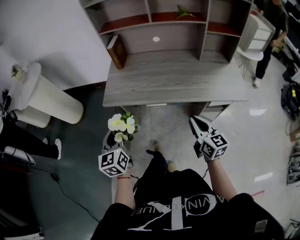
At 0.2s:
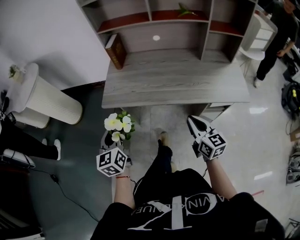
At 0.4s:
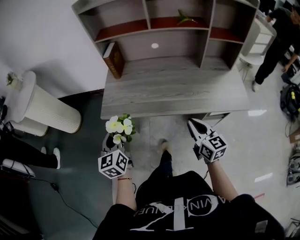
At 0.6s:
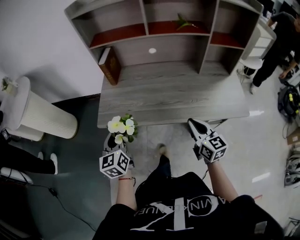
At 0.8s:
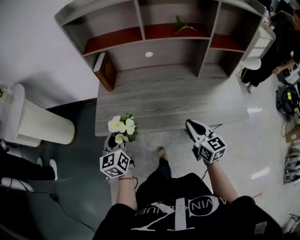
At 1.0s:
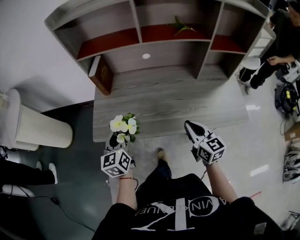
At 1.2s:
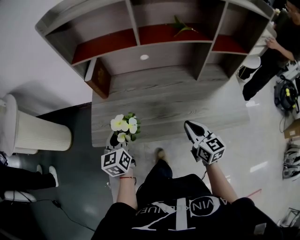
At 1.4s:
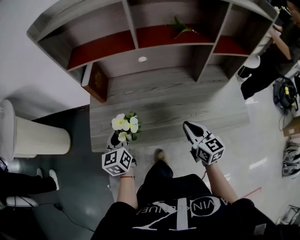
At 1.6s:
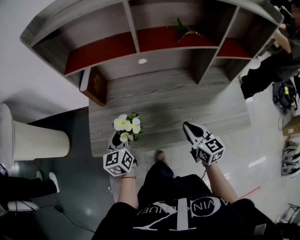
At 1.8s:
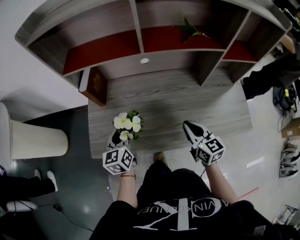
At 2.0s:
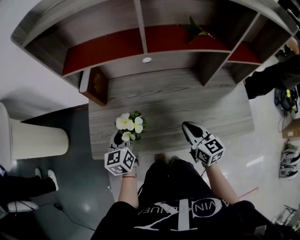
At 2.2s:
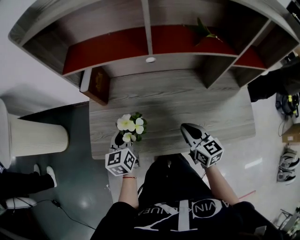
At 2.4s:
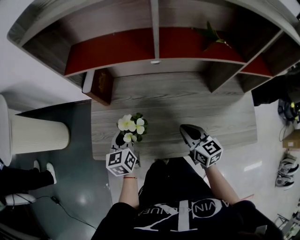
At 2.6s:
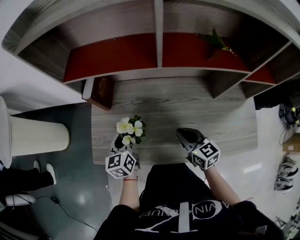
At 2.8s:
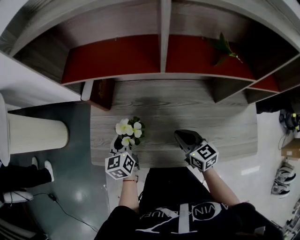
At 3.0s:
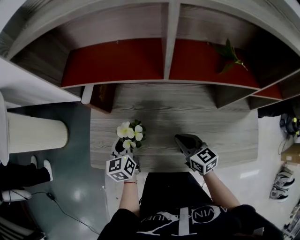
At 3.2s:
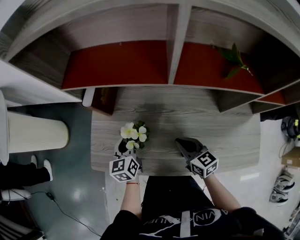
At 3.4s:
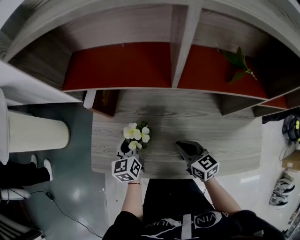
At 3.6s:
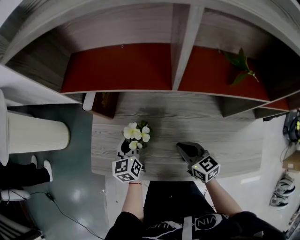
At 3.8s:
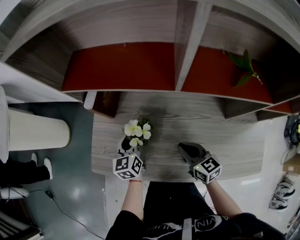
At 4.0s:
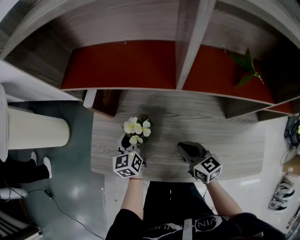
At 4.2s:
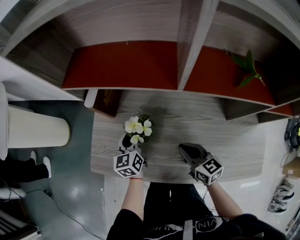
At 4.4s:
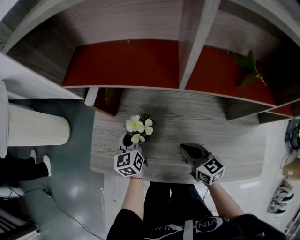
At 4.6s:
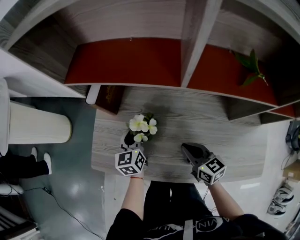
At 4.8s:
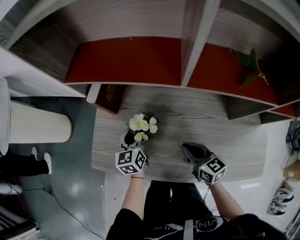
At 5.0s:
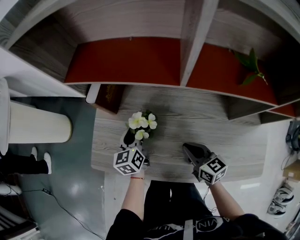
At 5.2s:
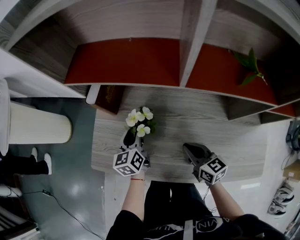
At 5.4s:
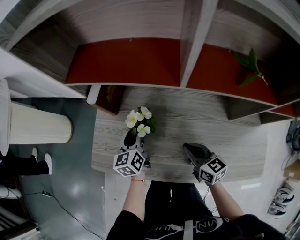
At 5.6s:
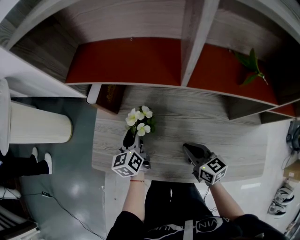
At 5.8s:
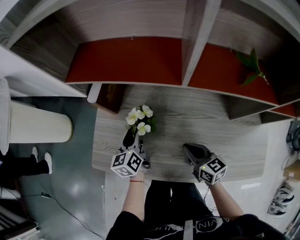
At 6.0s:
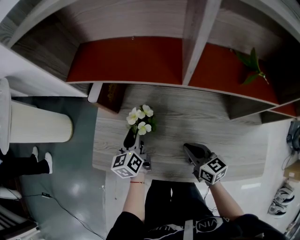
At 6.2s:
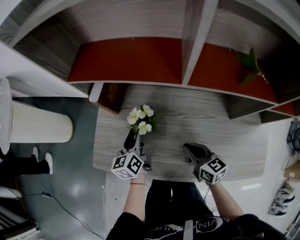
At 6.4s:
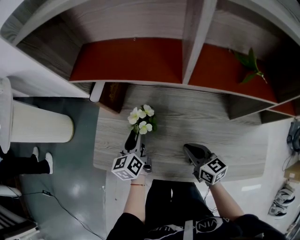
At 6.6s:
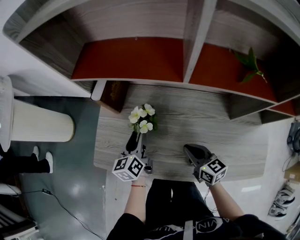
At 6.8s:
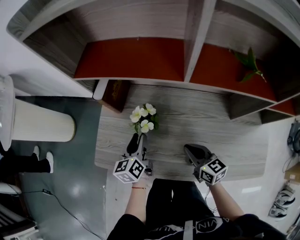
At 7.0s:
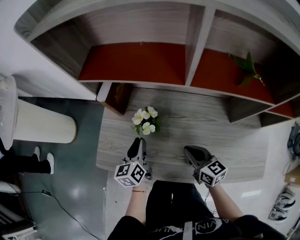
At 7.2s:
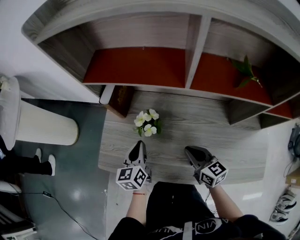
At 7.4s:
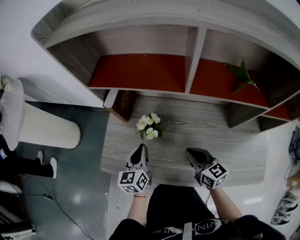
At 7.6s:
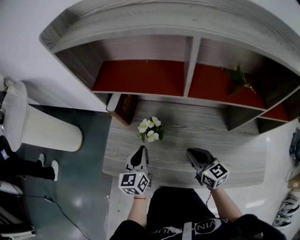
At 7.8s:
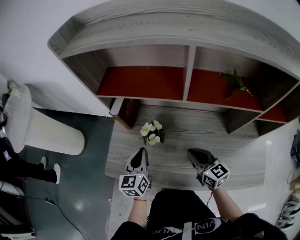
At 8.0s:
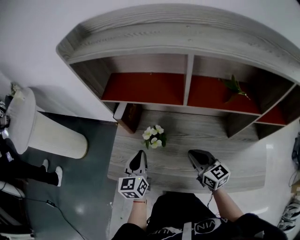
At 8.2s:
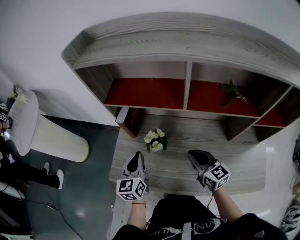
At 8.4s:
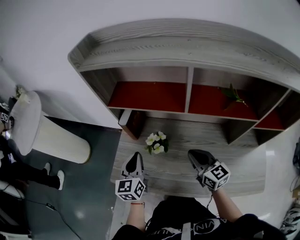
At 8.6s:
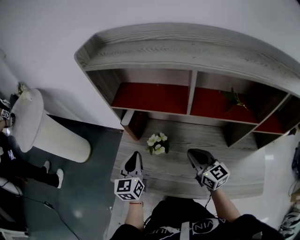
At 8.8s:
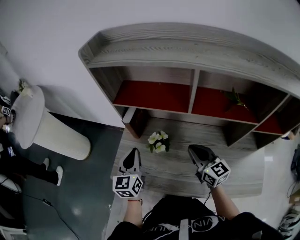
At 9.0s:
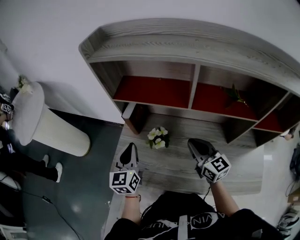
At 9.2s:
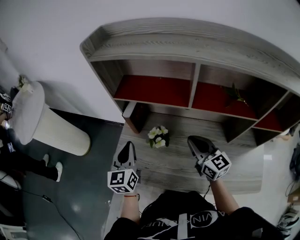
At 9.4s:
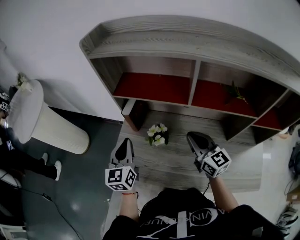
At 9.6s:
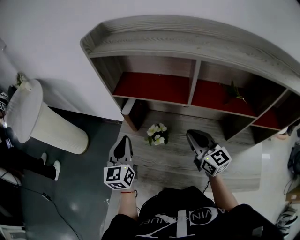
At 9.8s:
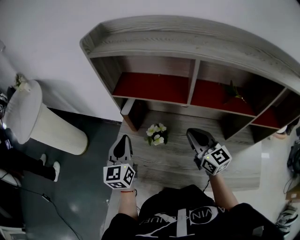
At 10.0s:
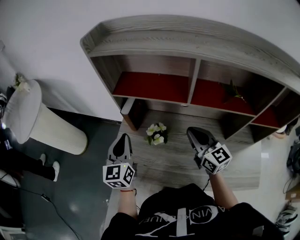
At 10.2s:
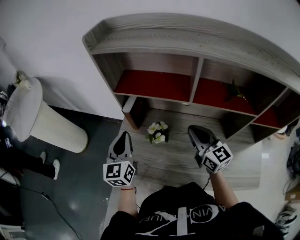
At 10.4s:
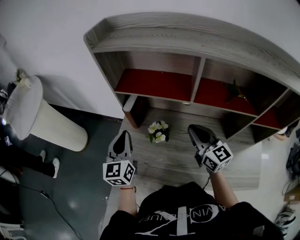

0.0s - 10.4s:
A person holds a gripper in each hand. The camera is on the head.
0.0s - 1.4s: Both grippers travel together forward, approximately 25 cm.
1.4s - 3.0s: Both grippers travel together forward and downward, roughly 15 cm. The right gripper turns by some 20 degrees.
3.0s - 4.4s: The left gripper changes place by roughly 5 cm.
4.4s - 6.0s: The left gripper opens its fingers.
6.0s - 7.4s: The left gripper travels backward by about 5 cm, and closes.
7.4s - 9.0s: The left gripper shifts approximately 15 cm upward and to the left. Meanwhile the right gripper travels upward and forward by roughly 15 cm.
9.0s - 10.4s: The grippers stay close to where they were, moving slightly.

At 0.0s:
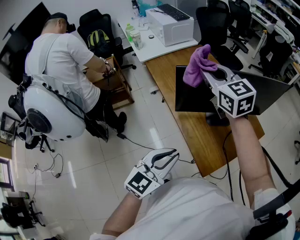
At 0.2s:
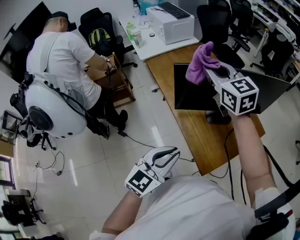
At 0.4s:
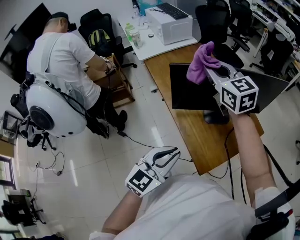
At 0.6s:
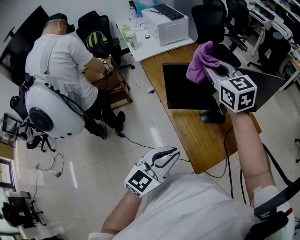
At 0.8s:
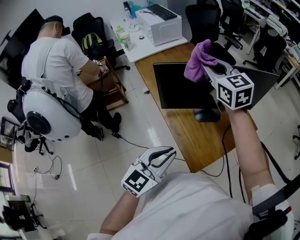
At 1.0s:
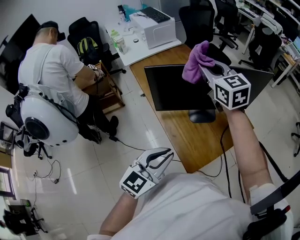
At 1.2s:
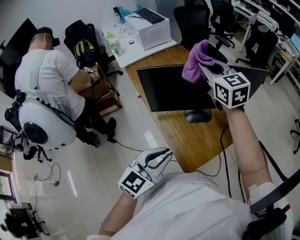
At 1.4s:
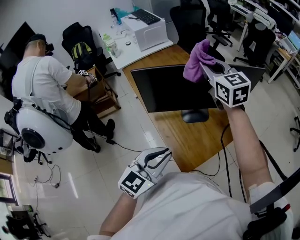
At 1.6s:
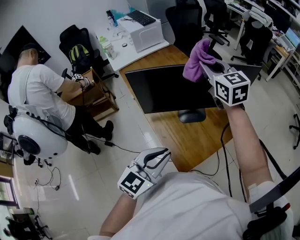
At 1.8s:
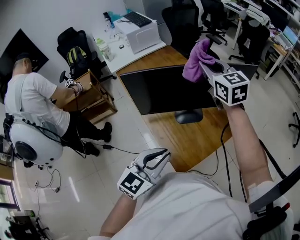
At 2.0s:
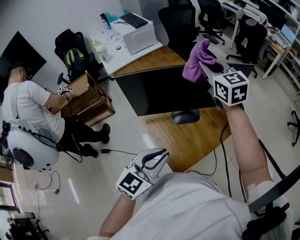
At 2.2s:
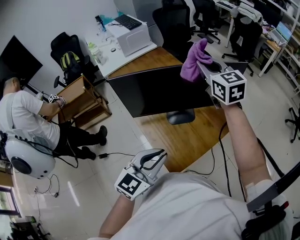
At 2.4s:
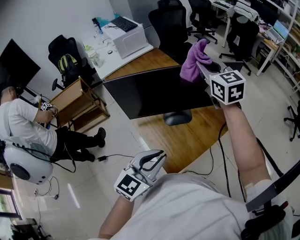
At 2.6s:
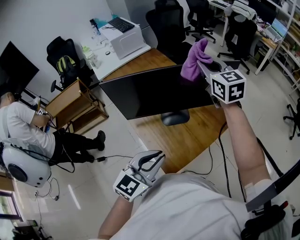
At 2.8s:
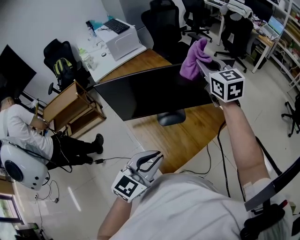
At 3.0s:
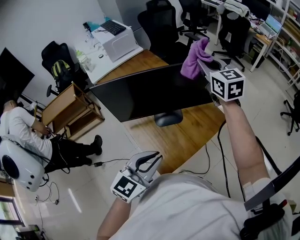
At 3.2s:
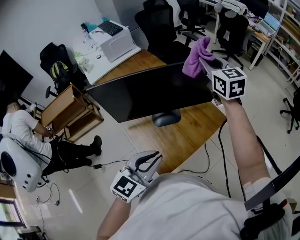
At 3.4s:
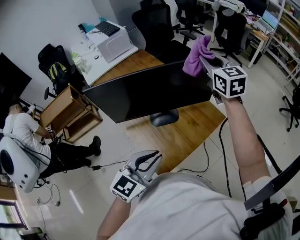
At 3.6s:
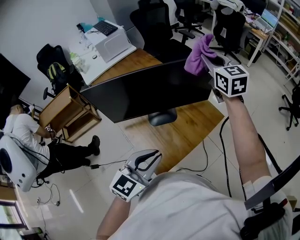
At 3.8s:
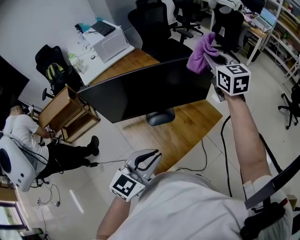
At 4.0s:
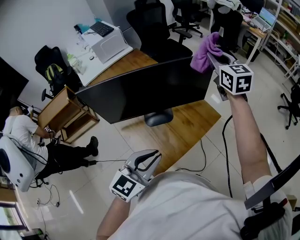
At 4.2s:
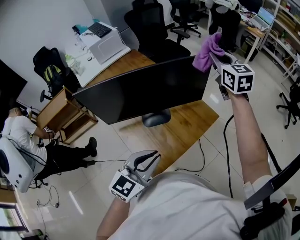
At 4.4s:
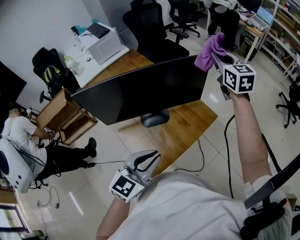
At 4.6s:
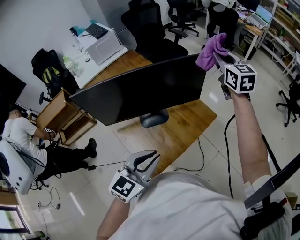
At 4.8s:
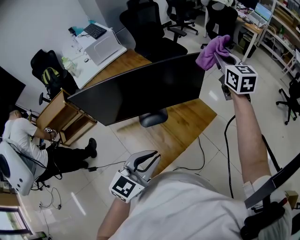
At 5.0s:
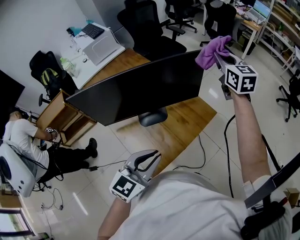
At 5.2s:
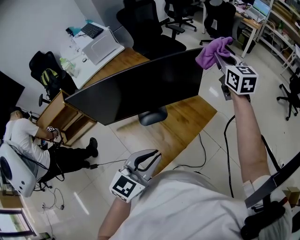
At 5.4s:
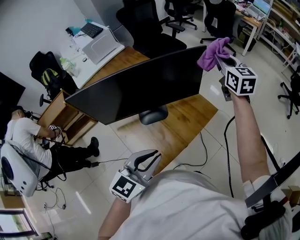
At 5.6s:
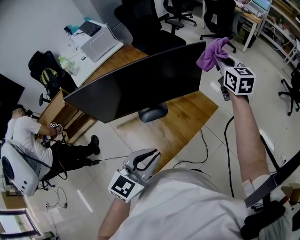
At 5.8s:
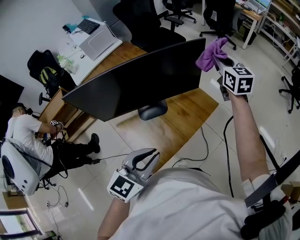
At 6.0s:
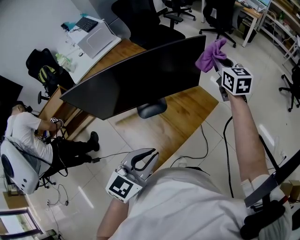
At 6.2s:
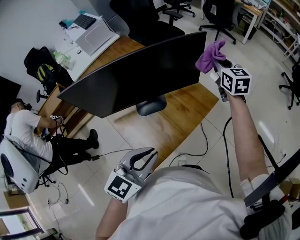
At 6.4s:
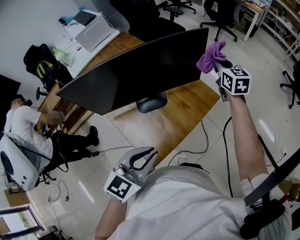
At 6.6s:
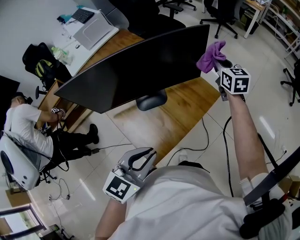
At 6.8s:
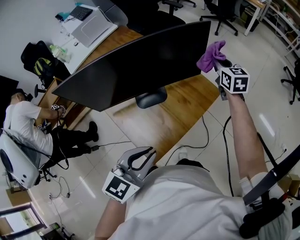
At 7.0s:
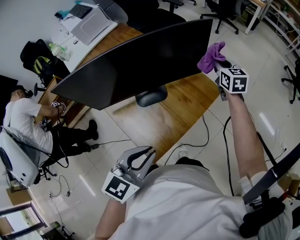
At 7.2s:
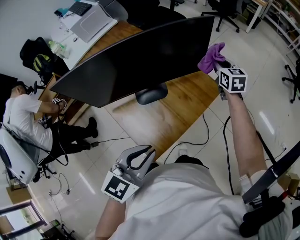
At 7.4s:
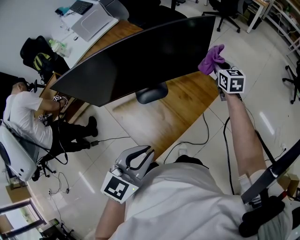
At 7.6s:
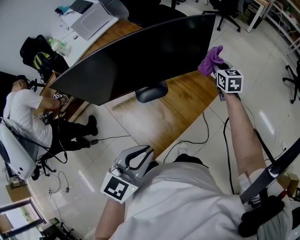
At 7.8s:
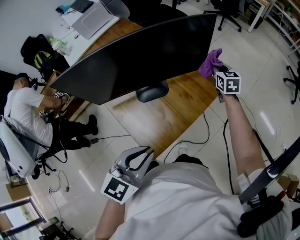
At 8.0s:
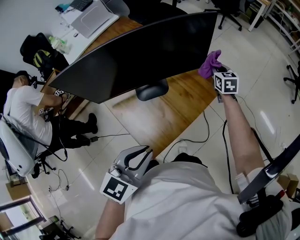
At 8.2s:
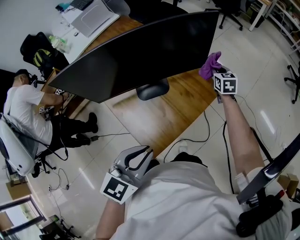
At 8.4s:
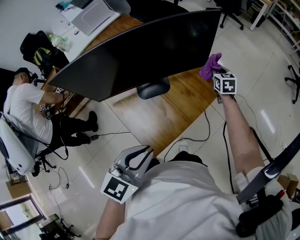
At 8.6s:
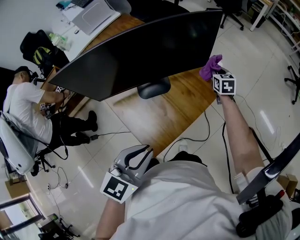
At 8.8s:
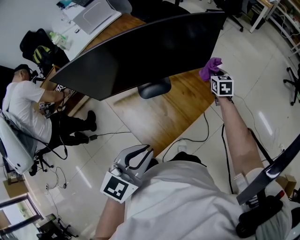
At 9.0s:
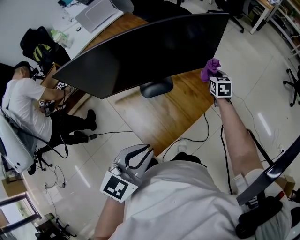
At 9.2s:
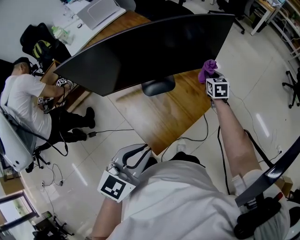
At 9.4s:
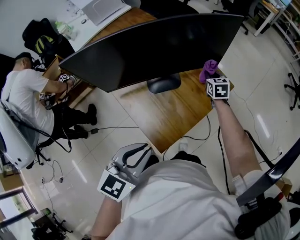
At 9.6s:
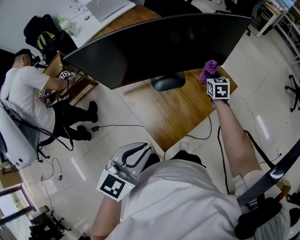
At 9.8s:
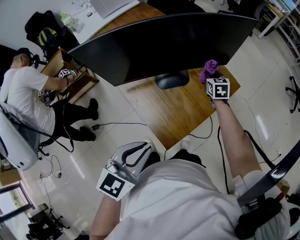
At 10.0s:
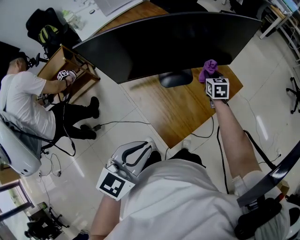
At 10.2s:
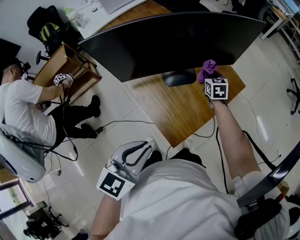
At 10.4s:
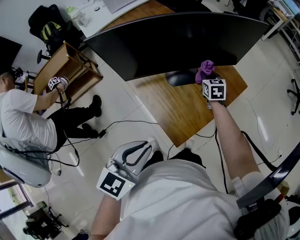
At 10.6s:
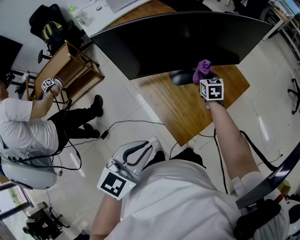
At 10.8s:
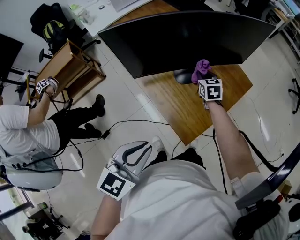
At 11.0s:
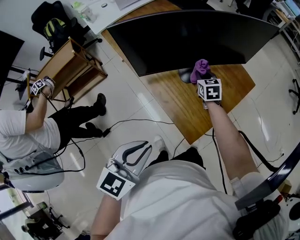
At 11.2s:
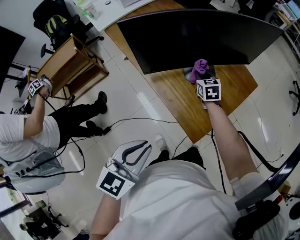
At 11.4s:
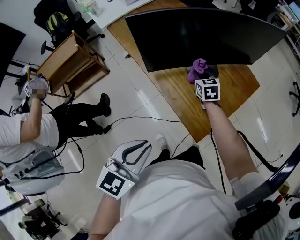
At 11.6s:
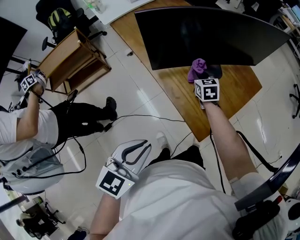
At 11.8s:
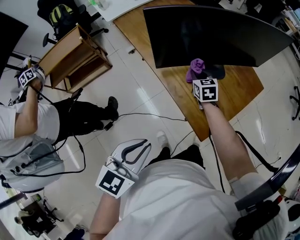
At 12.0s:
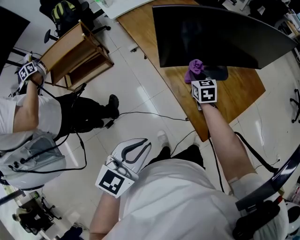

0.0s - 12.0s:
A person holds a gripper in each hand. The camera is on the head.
0.0s - 1.6s: The right gripper is displaced to the right by some 20 cm, while the left gripper heads to the right, covering roughly 10 cm.
1.6s - 3.0s: The right gripper is displaced to the right by approximately 15 cm; the left gripper heads to the right, covering about 5 cm.
3.0s - 4.4s: The left gripper is displaced to the right by some 5 cm. Meanwhile the right gripper is displaced to the right by approximately 15 cm.
4.4s - 6.0s: The right gripper shifts some 10 cm downward.
6.0s - 7.6s: The right gripper is displaced downward by about 15 cm.
7.6s - 9.0s: The right gripper shifts approximately 10 cm downward.
9.0s - 10.4s: Both grippers travel together to the left and backward, approximately 15 cm.
10.4s - 12.0s: The left gripper travels to the left and backward by some 15 cm; the right gripper travels to the left and backward by roughly 20 cm.

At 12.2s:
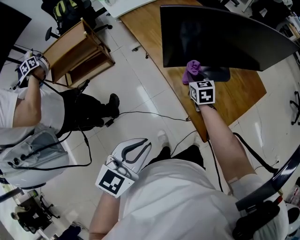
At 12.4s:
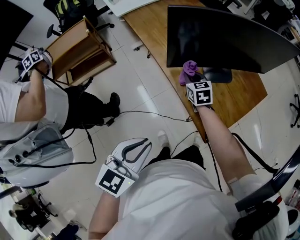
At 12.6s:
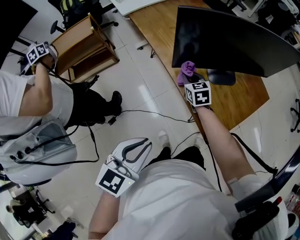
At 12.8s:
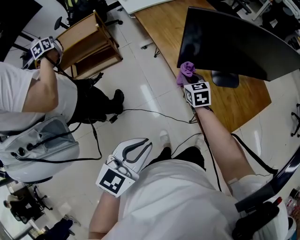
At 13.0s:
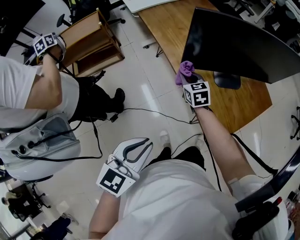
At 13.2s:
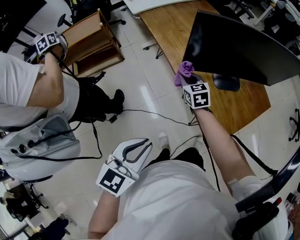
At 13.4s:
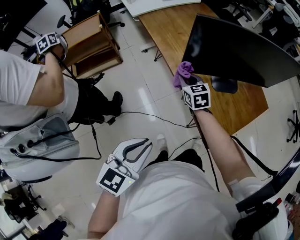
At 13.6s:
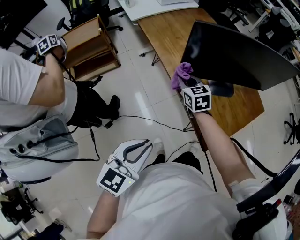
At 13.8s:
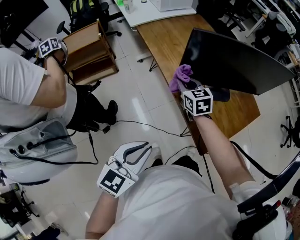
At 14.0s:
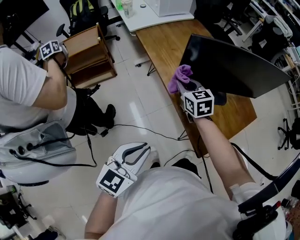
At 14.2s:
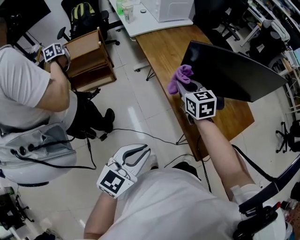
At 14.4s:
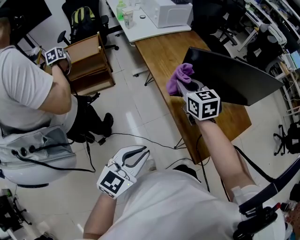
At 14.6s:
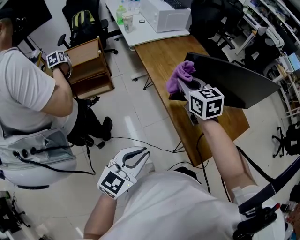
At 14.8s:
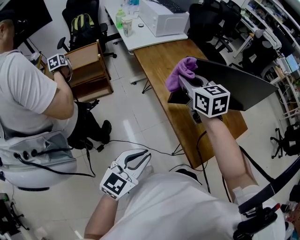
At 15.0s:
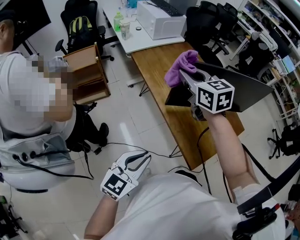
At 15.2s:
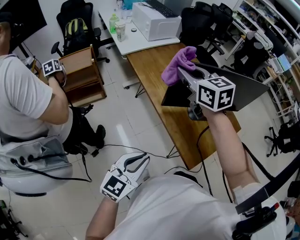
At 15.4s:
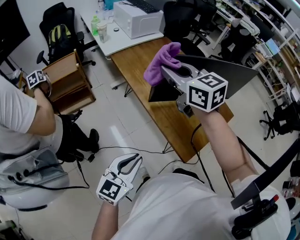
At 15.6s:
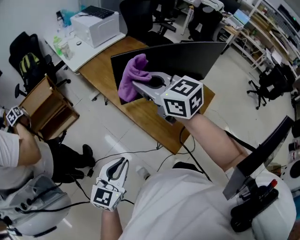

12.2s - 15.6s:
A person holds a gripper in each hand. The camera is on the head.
12.2s - 13.8s: The right gripper goes roughly 15 cm to the left and upward.
13.8s - 15.6s: The right gripper moves upward, approximately 25 cm, and changes its angle by about 20 degrees.
